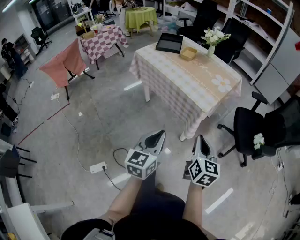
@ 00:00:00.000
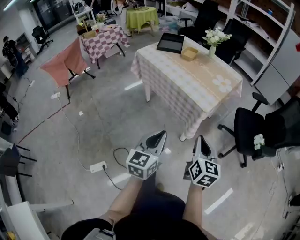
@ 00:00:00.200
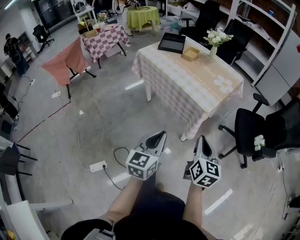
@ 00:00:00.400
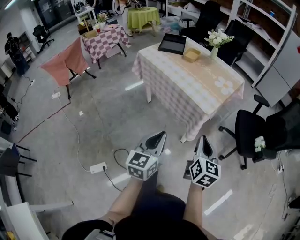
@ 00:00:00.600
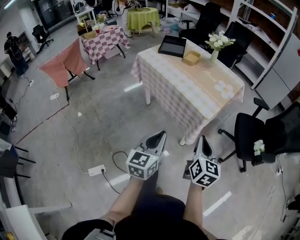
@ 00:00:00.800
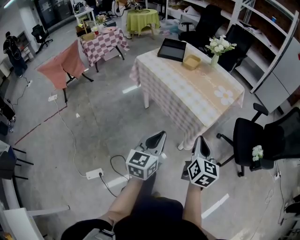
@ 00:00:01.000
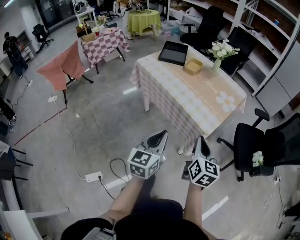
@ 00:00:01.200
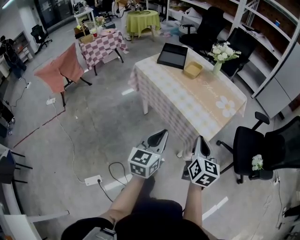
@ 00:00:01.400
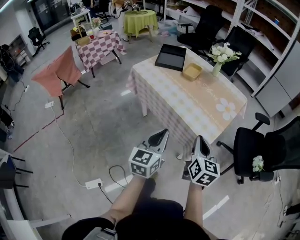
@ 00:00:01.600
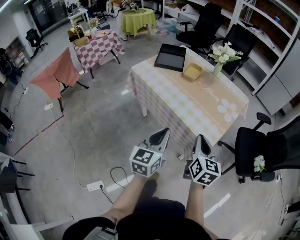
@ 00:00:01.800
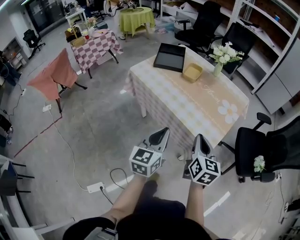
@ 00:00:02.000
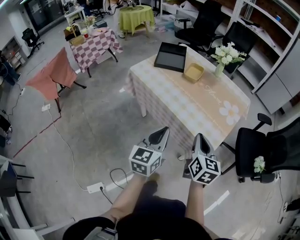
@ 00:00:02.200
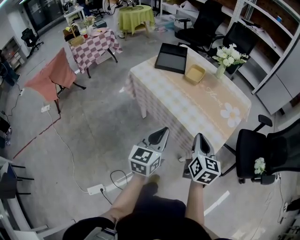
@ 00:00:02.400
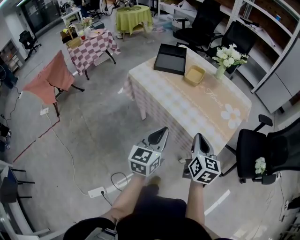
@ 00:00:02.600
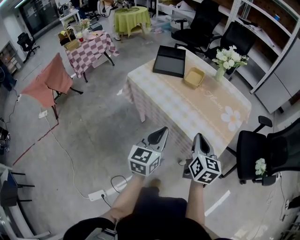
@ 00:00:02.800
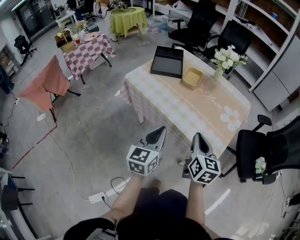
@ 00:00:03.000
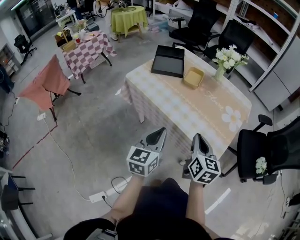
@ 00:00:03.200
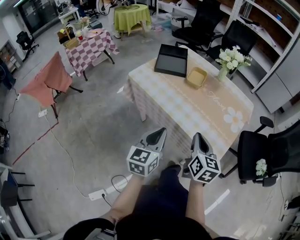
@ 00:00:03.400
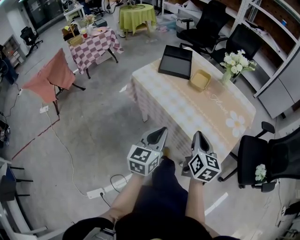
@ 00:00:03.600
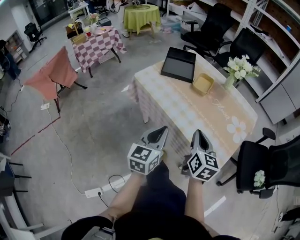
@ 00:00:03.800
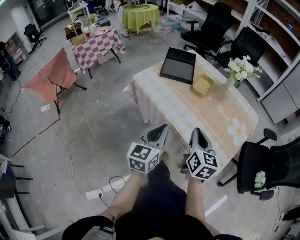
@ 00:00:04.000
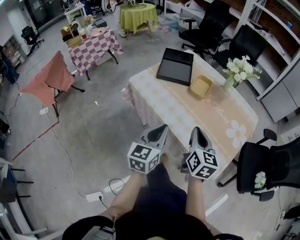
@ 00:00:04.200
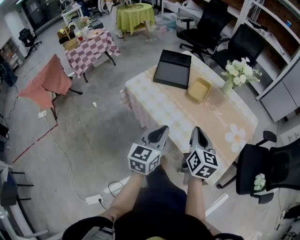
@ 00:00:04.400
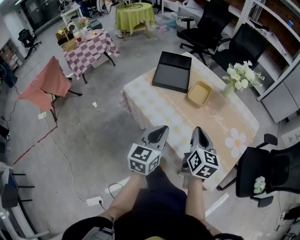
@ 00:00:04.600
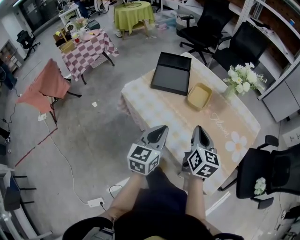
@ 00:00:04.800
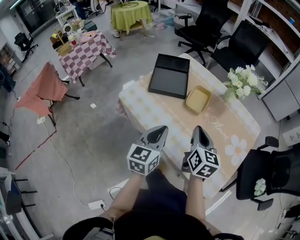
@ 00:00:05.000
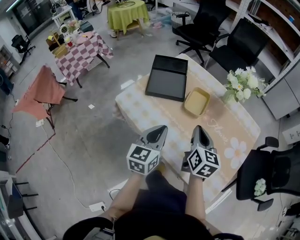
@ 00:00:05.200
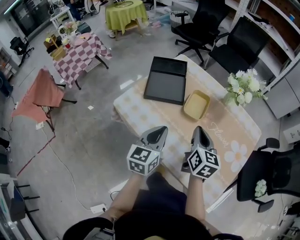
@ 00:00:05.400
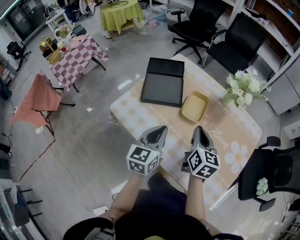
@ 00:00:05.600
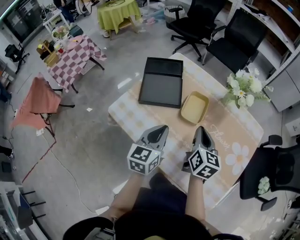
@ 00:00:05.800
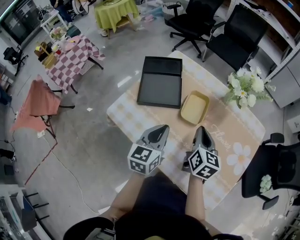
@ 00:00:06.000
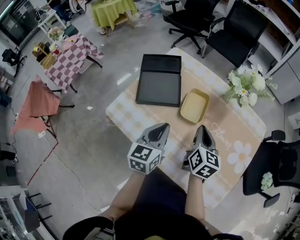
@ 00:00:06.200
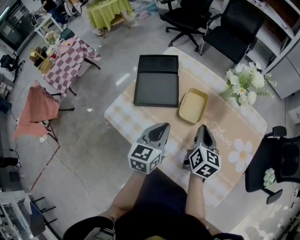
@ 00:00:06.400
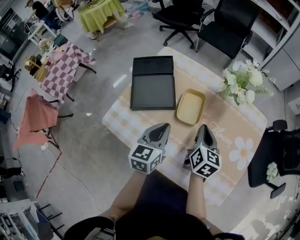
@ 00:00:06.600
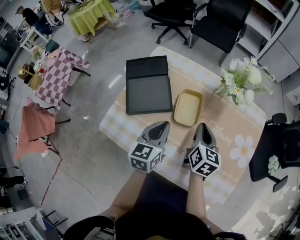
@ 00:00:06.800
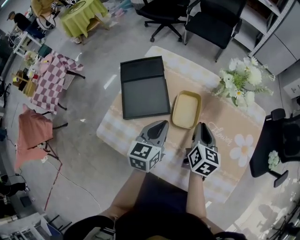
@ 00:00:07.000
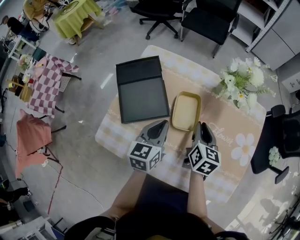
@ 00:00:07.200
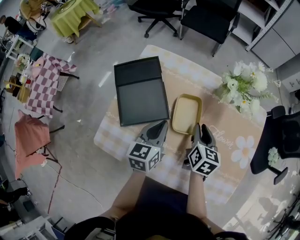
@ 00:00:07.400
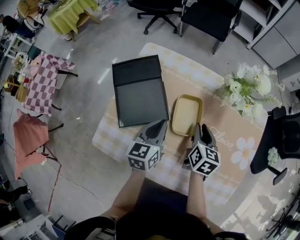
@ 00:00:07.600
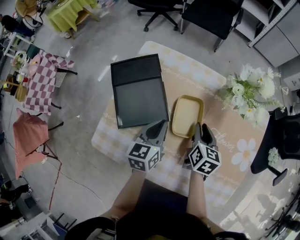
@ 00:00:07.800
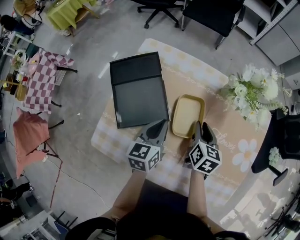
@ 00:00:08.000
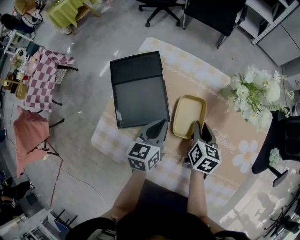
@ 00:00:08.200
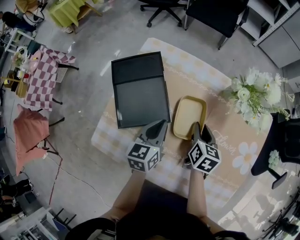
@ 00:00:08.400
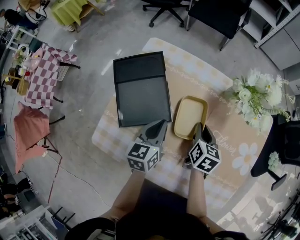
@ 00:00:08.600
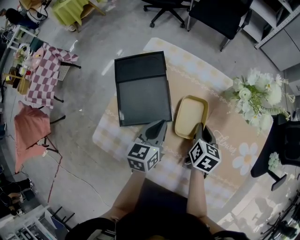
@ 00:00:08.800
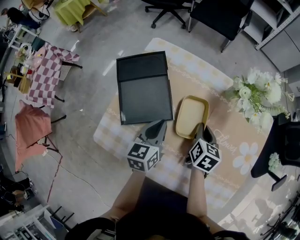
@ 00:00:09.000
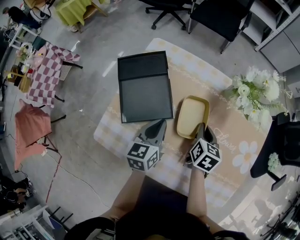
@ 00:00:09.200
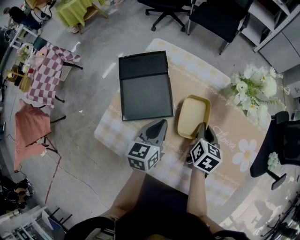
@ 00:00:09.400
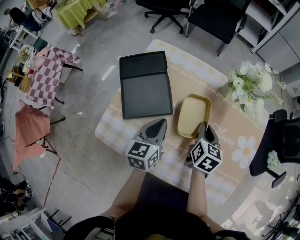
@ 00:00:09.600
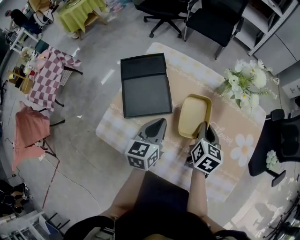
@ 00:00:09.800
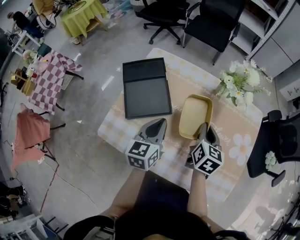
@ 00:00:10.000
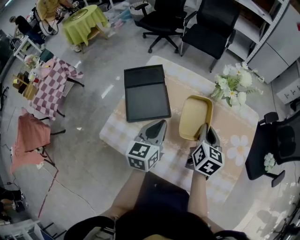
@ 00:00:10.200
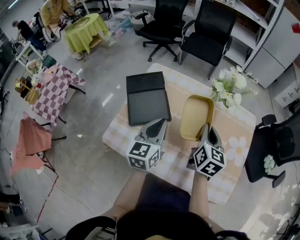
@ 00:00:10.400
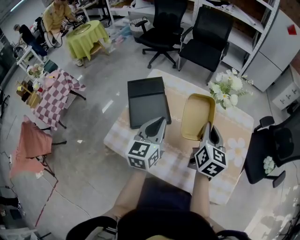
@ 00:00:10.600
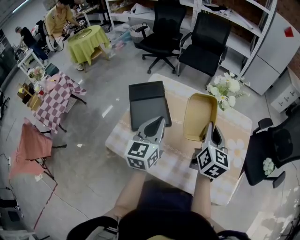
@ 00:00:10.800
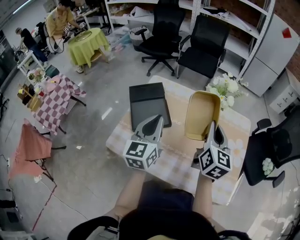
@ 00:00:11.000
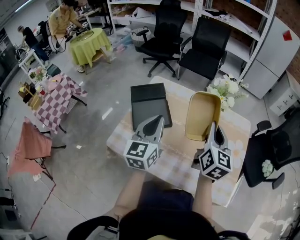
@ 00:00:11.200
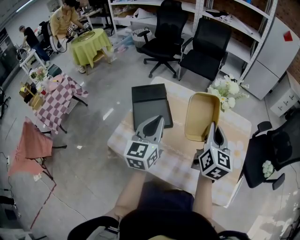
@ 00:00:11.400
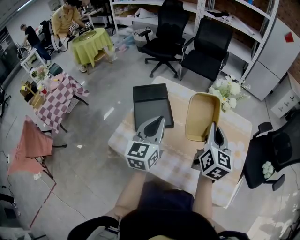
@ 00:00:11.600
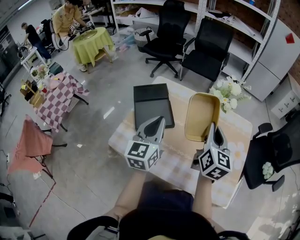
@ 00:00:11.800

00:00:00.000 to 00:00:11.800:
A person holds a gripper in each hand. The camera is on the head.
00:00:00.000 to 00:00:01.400: Both grippers move forward, some 15 cm.
00:00:01.400 to 00:00:03.000: Both grippers move forward and to the left, about 20 cm.
00:00:03.000 to 00:00:04.400: The two grippers go approximately 15 cm forward.
00:00:04.400 to 00:00:06.000: The grippers both shift forward by some 20 cm.
00:00:06.000 to 00:00:07.400: The right gripper moves forward and downward, some 10 cm, and opens up, while the left gripper goes roughly 10 cm forward.
00:00:07.400 to 00:00:08.800: The right gripper changes place by roughly 5 cm.
00:00:08.800 to 00:00:10.400: Both grippers move upward, roughly 15 cm. The right gripper turns by approximately 20 degrees.
00:00:10.400 to 00:00:11.800: The grippers both shift upward by approximately 5 cm.

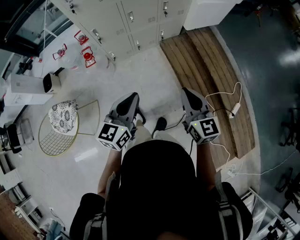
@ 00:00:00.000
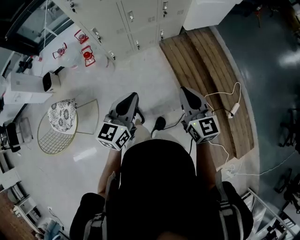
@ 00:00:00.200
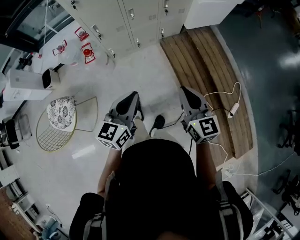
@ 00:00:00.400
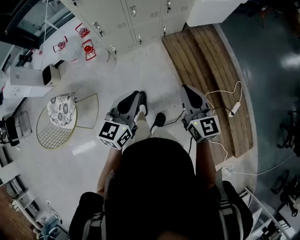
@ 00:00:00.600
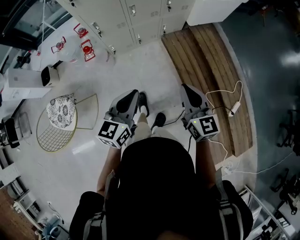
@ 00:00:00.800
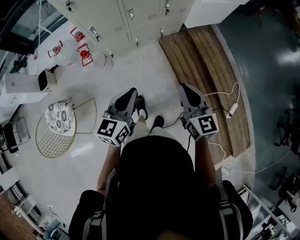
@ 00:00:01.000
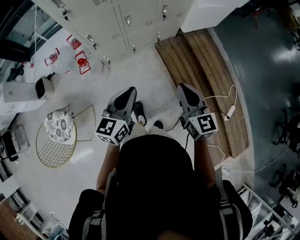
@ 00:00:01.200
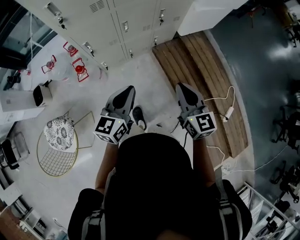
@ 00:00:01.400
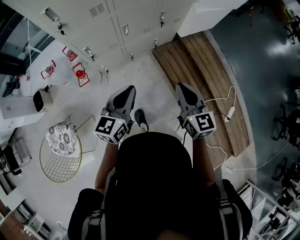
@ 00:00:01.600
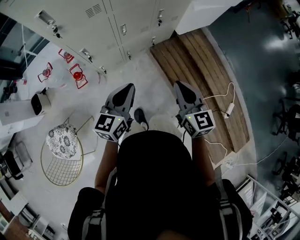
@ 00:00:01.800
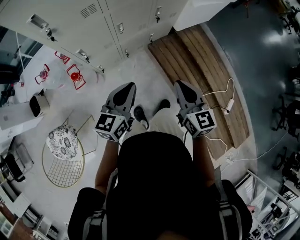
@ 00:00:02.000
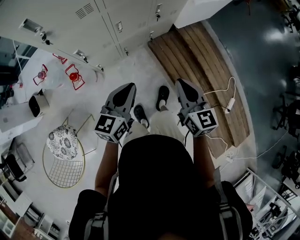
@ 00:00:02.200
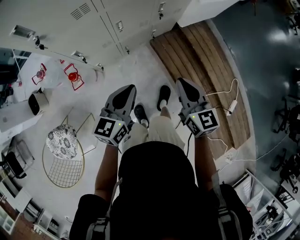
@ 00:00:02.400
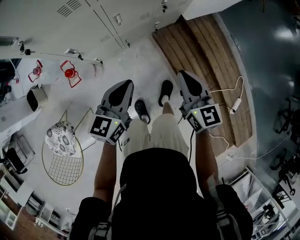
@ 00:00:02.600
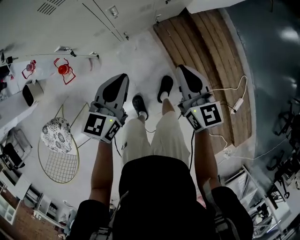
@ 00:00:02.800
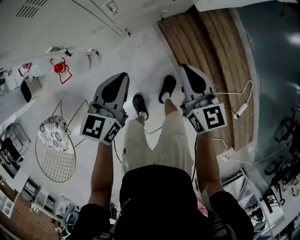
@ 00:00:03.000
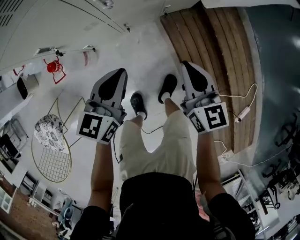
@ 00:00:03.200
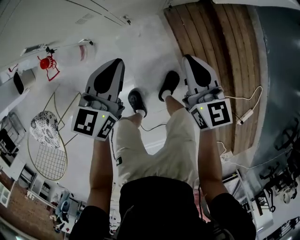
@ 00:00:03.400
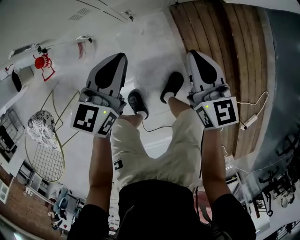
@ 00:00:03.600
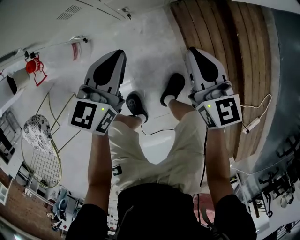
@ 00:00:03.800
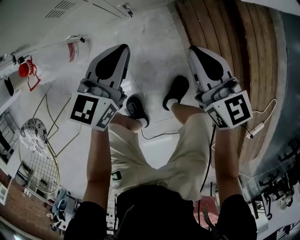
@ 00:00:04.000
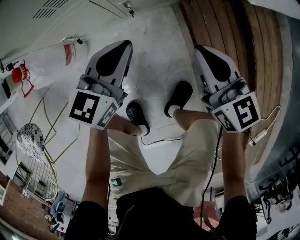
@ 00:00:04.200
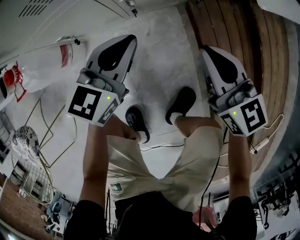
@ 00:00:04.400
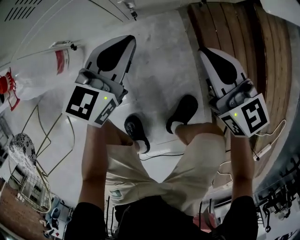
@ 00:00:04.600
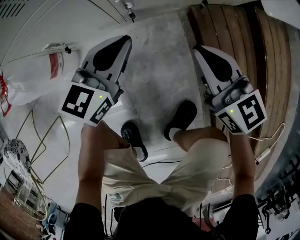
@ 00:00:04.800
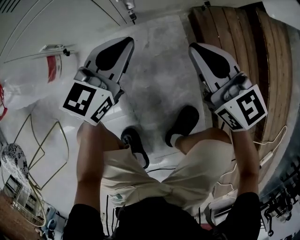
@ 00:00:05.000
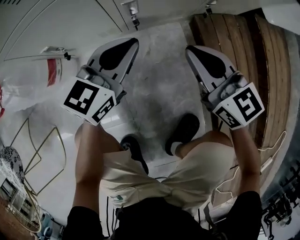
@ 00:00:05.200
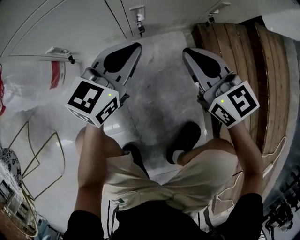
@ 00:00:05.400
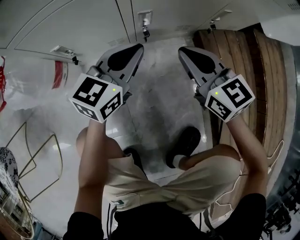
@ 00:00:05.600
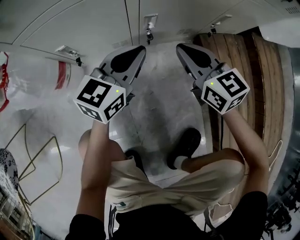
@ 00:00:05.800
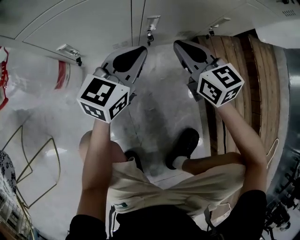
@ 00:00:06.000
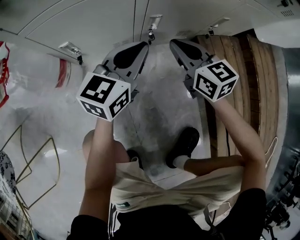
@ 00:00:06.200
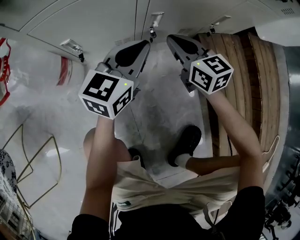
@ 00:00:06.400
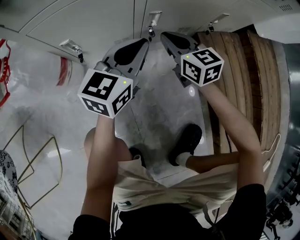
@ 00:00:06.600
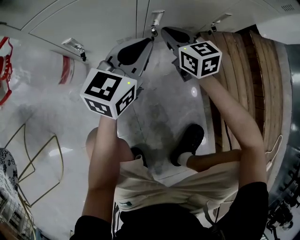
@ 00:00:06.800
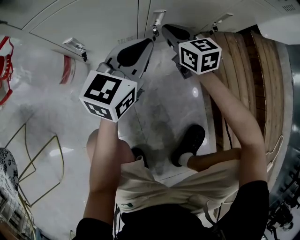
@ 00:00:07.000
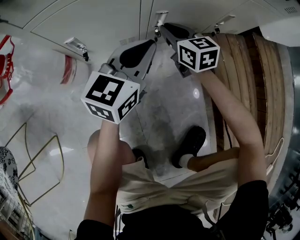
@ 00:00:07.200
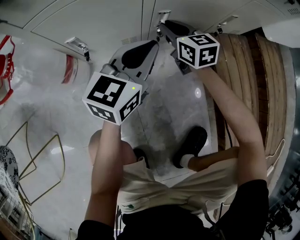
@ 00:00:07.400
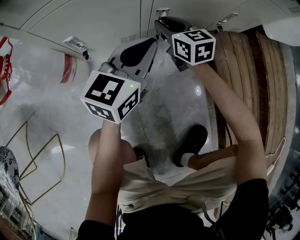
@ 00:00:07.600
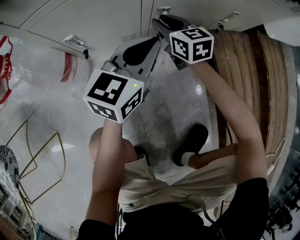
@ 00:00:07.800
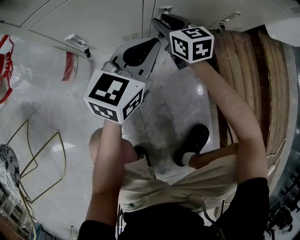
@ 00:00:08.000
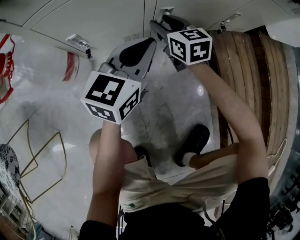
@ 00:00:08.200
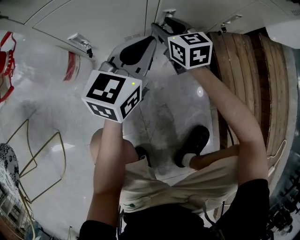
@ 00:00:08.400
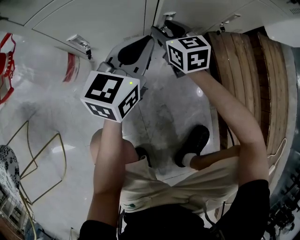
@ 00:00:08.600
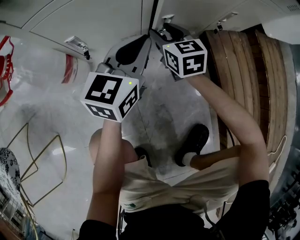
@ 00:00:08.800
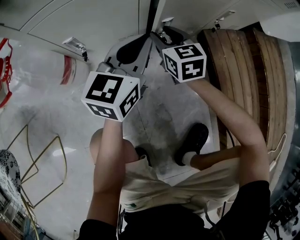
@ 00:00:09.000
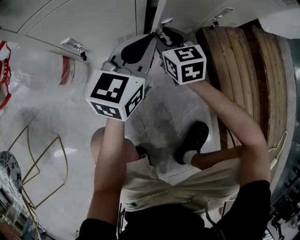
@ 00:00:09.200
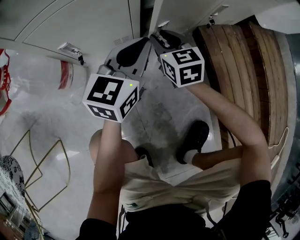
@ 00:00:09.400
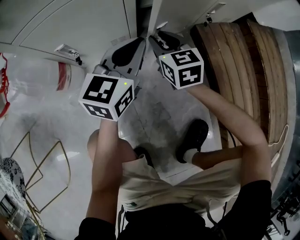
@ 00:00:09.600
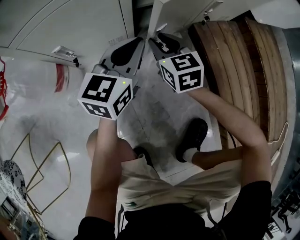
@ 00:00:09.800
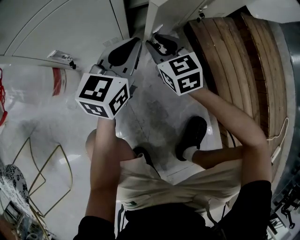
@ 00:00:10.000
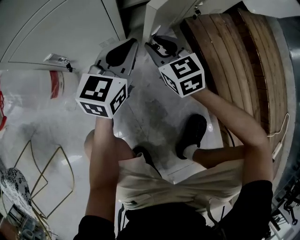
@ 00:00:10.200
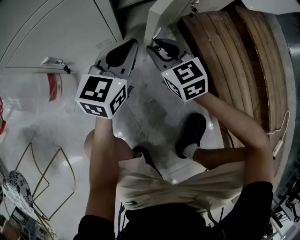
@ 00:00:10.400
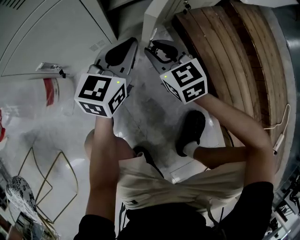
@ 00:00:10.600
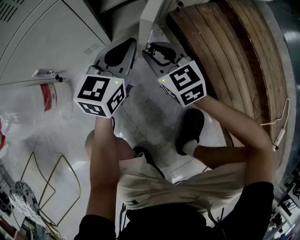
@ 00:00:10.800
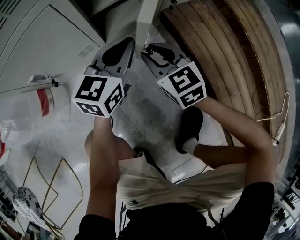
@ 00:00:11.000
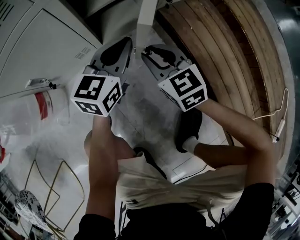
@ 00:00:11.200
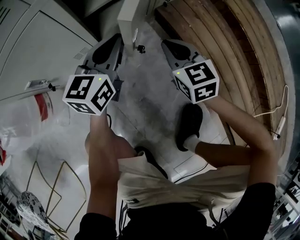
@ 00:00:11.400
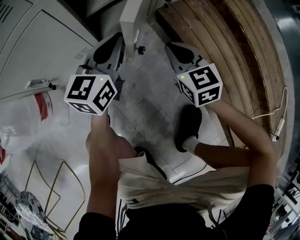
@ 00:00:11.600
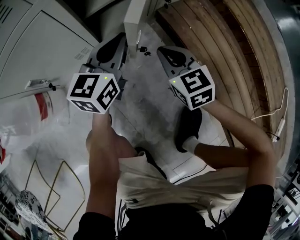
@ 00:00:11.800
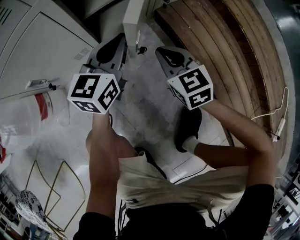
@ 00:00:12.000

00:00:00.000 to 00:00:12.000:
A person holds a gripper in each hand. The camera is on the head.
00:00:00.000 to 00:00:01.600: The right gripper shifts roughly 20 cm forward and to the left. Meanwhile the left gripper goes some 20 cm forward.
00:00:01.600 to 00:00:03.000: The grippers both shift forward and downward by about 30 cm.
00:00:03.000 to 00:00:04.400: Both grippers travel together downward, about 40 cm. The right gripper changes its angle by about 20 degrees.
00:00:04.400 to 00:00:06.000: The right gripper goes some 20 cm downward, to the left and forward. The left gripper moves downward and to the left, about 15 cm.
00:00:06.000 to 00:00:07.600: The right gripper moves forward, downward and to the left, approximately 10 cm.
00:00:07.600 to 00:00:09.000: There are only small adjustments of the grippers.
00:00:09.000 to 00:00:10.400: The left gripper moves to the right, approximately 5 cm. Meanwhile the right gripper travels to the right and backward by about 10 cm.
00:00:10.400 to 00:00:12.000: The left gripper goes roughly 5 cm to the right. The right gripper is displaced to the right by roughly 10 cm, and closes up.
